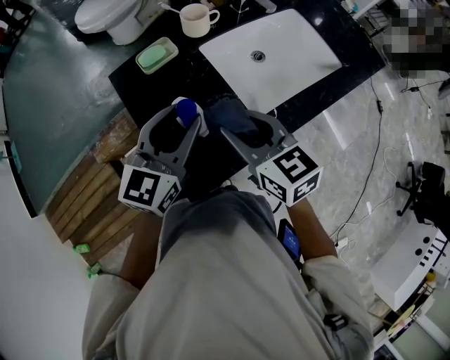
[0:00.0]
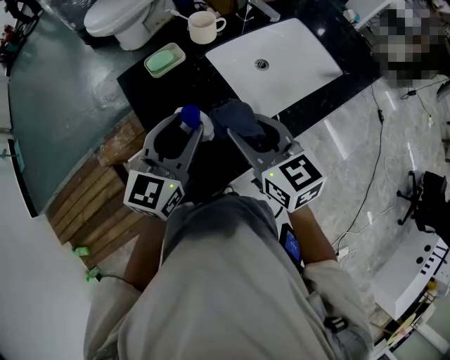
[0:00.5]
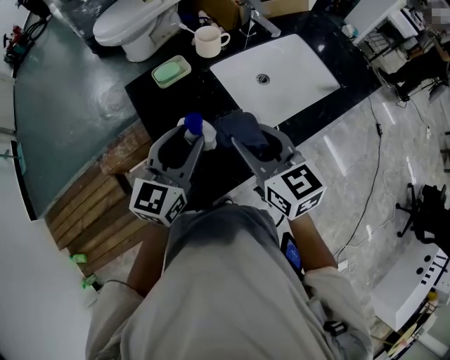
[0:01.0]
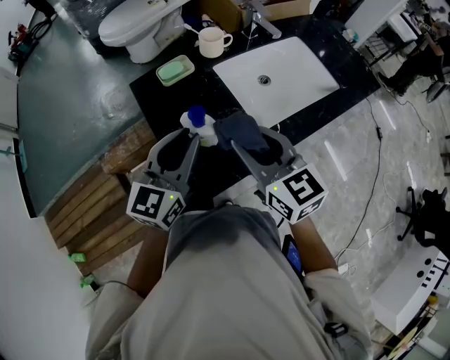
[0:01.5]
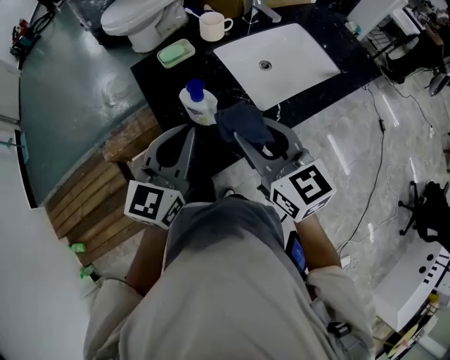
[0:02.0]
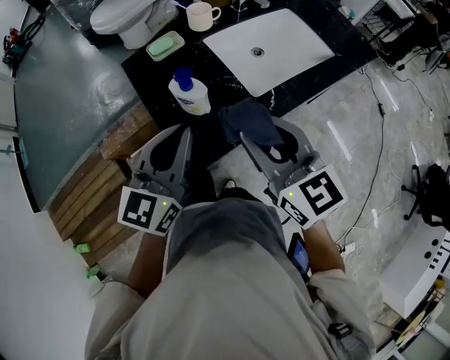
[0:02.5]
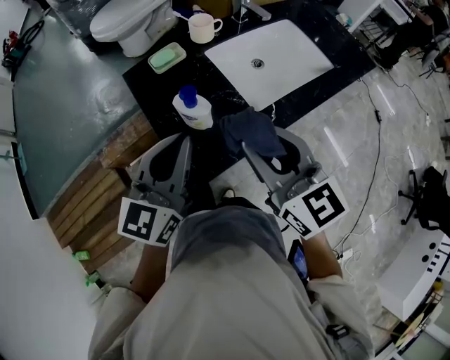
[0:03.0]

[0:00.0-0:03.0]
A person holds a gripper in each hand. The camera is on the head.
0:00.0 to 0:01.5: The right gripper ends up roughly 5 cm from where it was. Meanwhile the left gripper changes place by roughly 5 cm.
0:01.5 to 0:03.0: Both grippers move backward, roughly 5 cm.

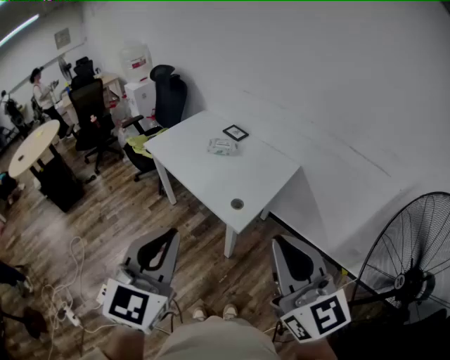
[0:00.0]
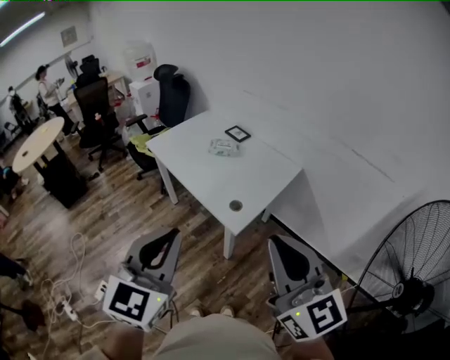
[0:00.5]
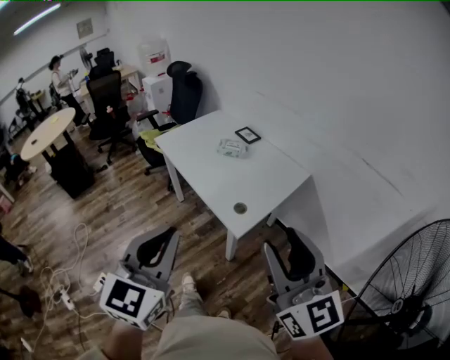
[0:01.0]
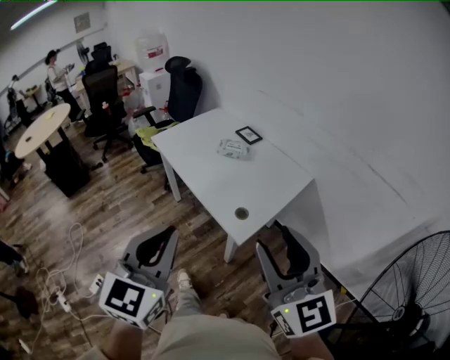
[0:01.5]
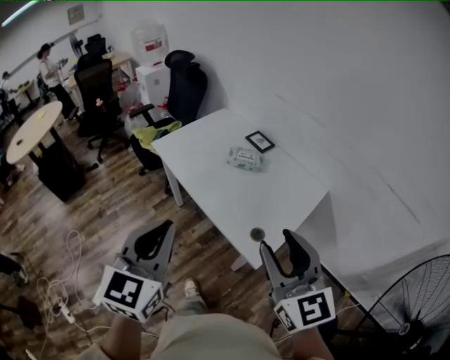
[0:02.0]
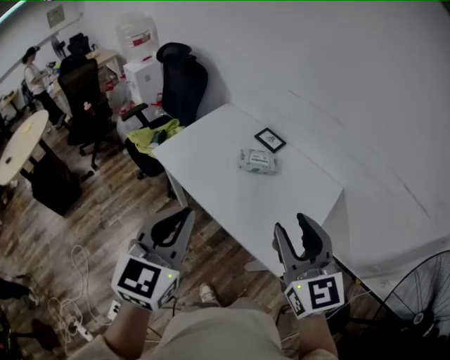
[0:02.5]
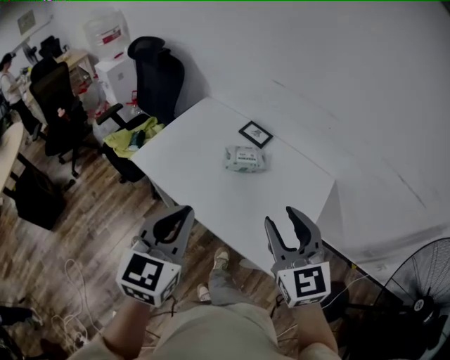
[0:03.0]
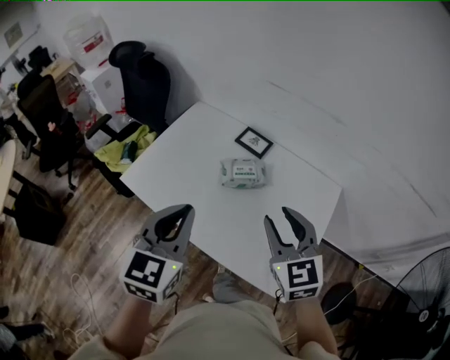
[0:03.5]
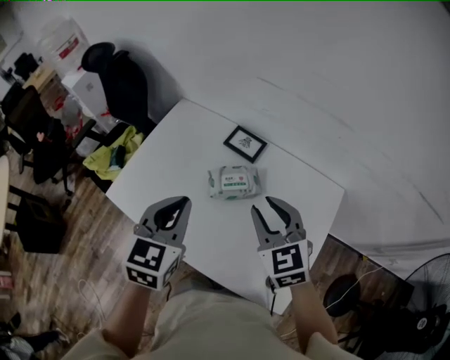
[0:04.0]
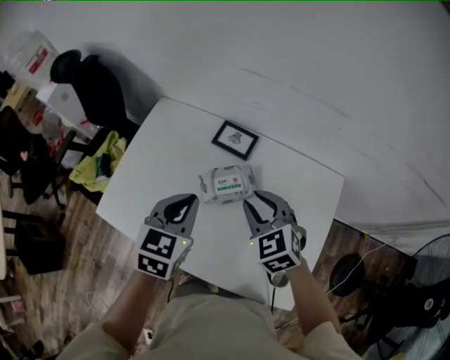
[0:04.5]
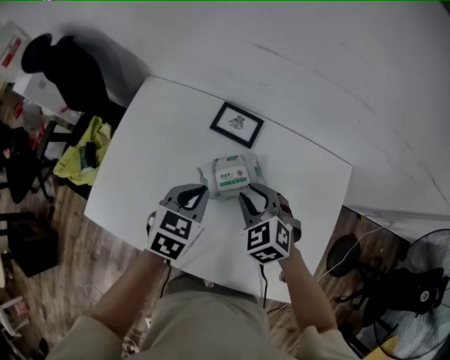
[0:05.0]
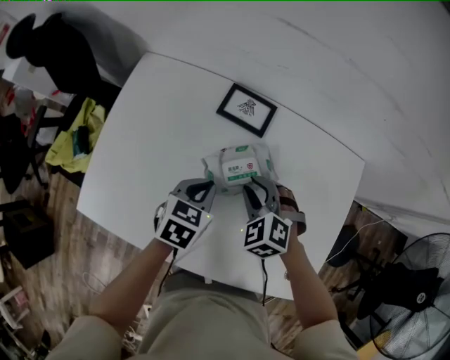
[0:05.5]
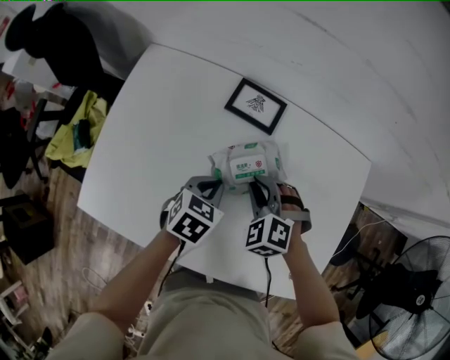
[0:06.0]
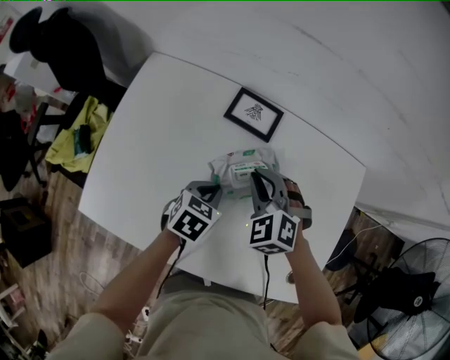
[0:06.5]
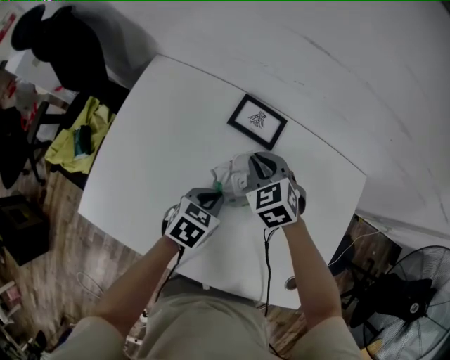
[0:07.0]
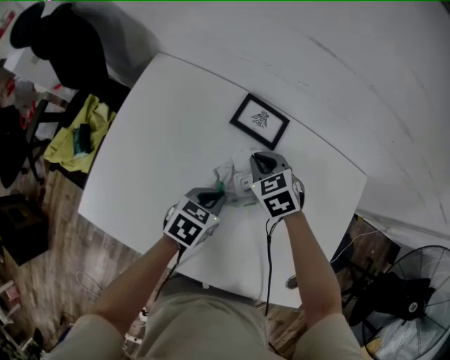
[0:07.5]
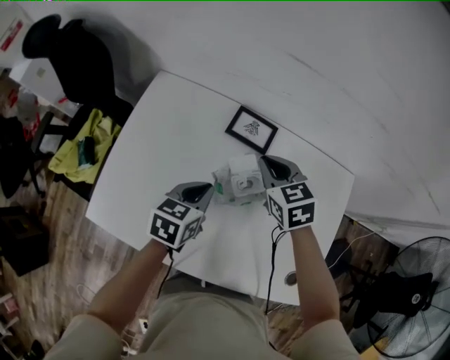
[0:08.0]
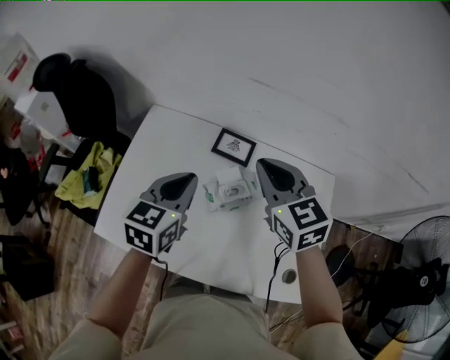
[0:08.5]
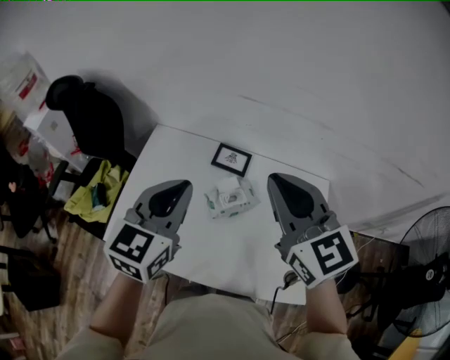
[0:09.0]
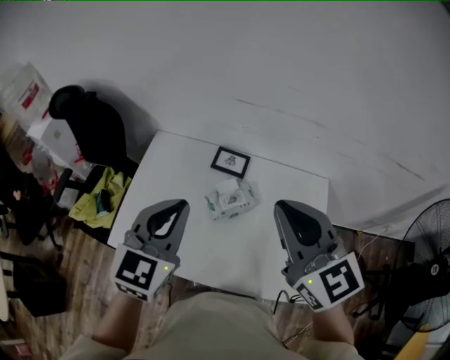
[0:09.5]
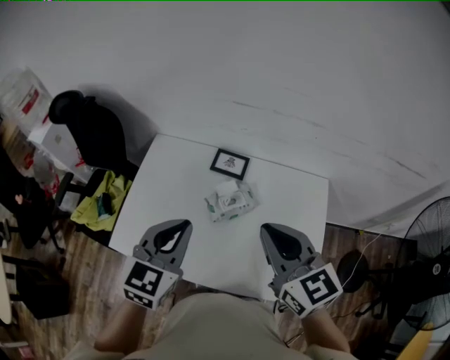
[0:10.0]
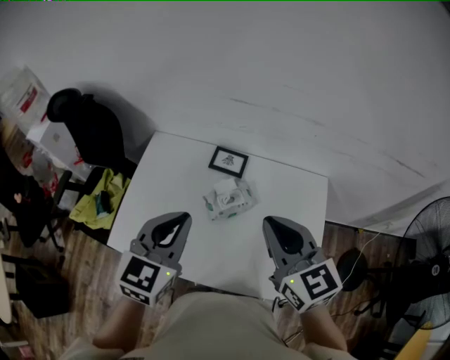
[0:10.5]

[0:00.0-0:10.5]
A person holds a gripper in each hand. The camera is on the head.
0:00.0 to 0:02.0: The right gripper heads forward, covering some 25 cm, and opens its fingers, while the left gripper travels forward and to the left by roughly 25 cm.
0:02.0 to 0:04.0: The pair of grippers is taken forward, about 50 cm. The left gripper swivels roughly 30 degrees; the right gripper rotates roughly 30 degrees.
0:04.0 to 0:06.5: The left gripper shifts roughly 30 cm downward, and swivels some 40 degrees; the right gripper travels downward by about 20 cm, changes its angle by approximately 30 degrees, and closes.
0:06.5 to 0:08.5: Both grippers move upward, roughly 25 cm. The left gripper changes its angle by some 30 degrees. Meanwhile the right gripper turns by approximately 40 degrees.
0:08.5 to 0:10.5: The two grippers go some 15 cm backward and upward.

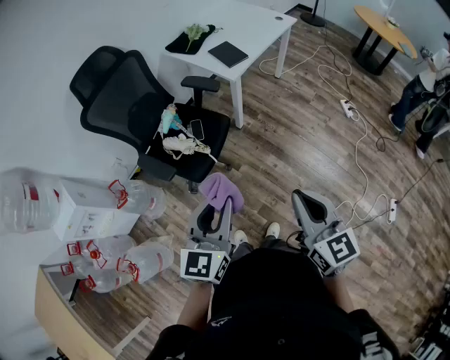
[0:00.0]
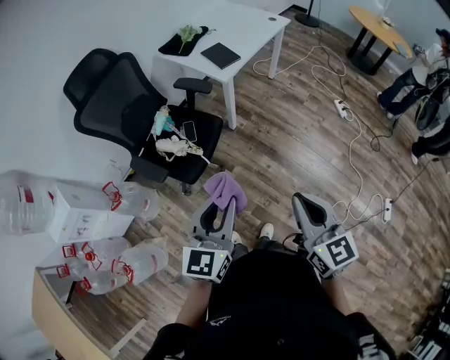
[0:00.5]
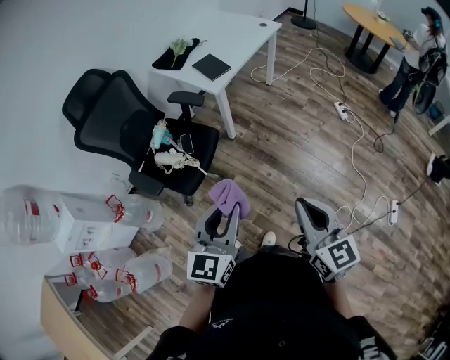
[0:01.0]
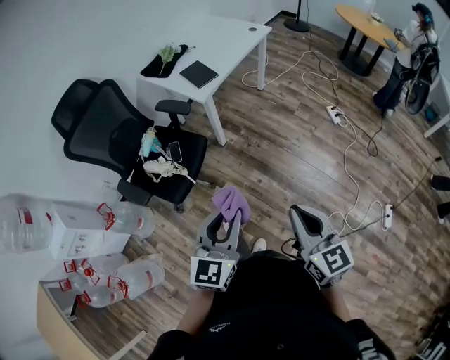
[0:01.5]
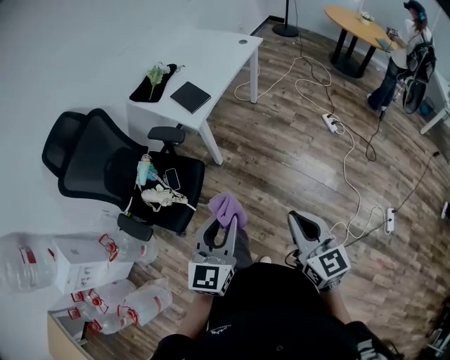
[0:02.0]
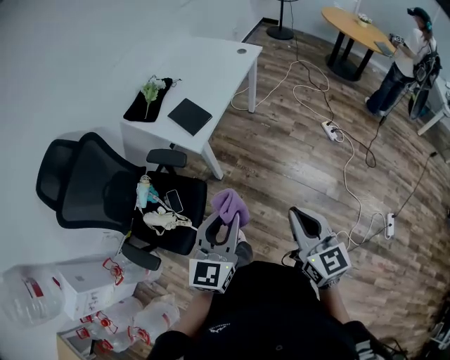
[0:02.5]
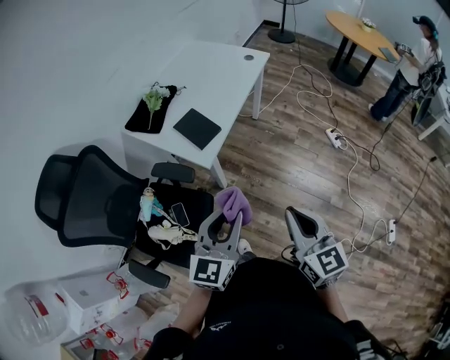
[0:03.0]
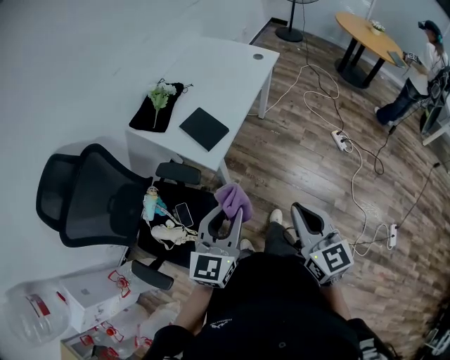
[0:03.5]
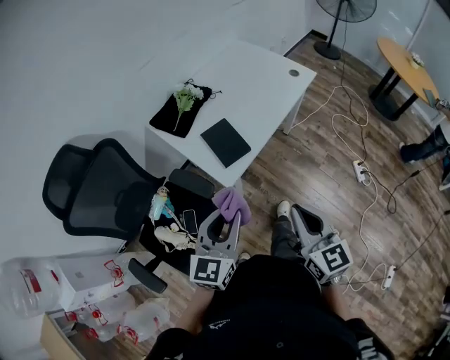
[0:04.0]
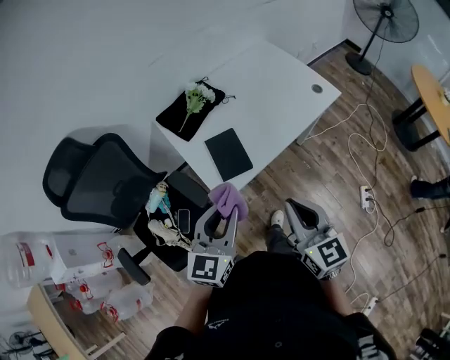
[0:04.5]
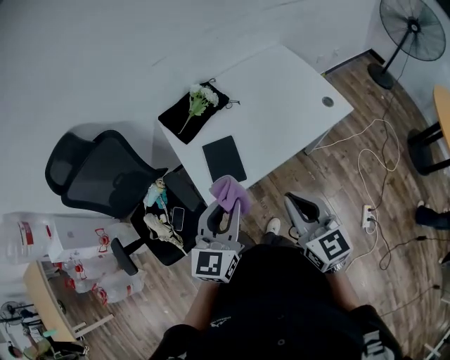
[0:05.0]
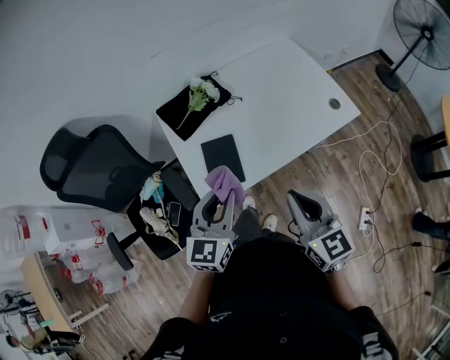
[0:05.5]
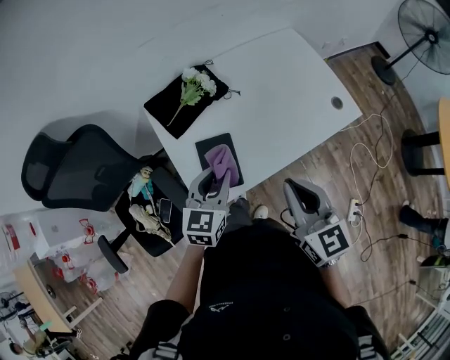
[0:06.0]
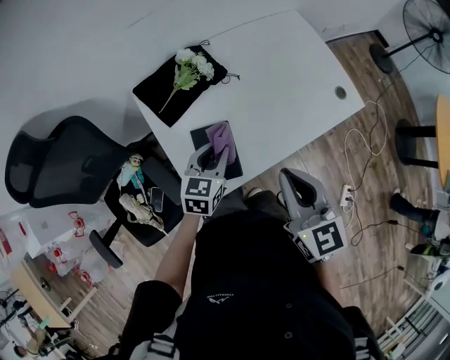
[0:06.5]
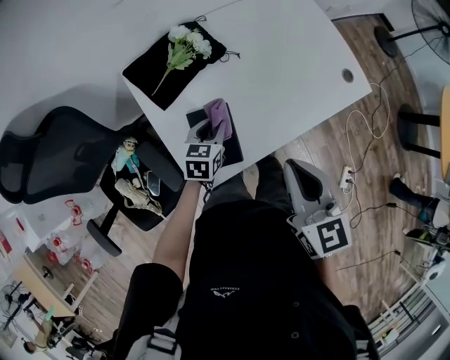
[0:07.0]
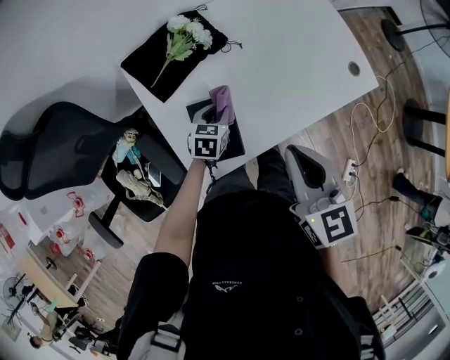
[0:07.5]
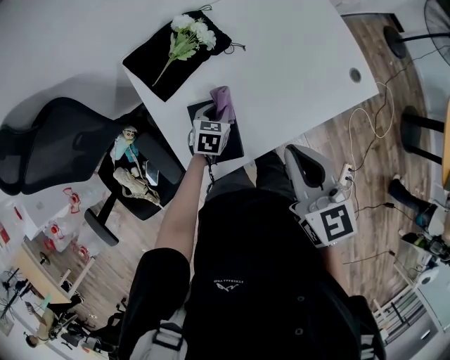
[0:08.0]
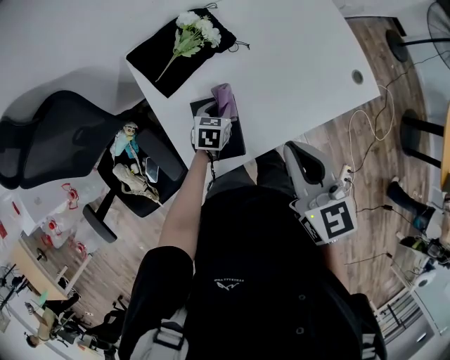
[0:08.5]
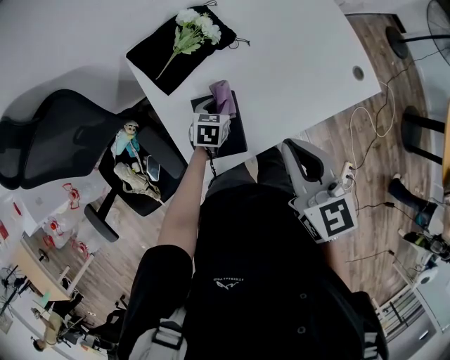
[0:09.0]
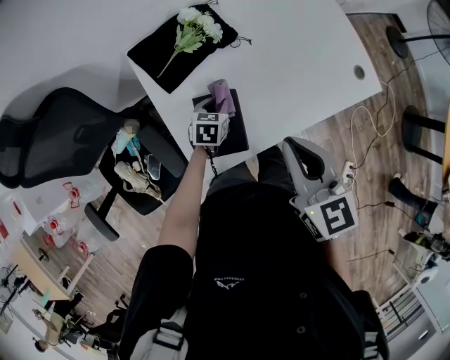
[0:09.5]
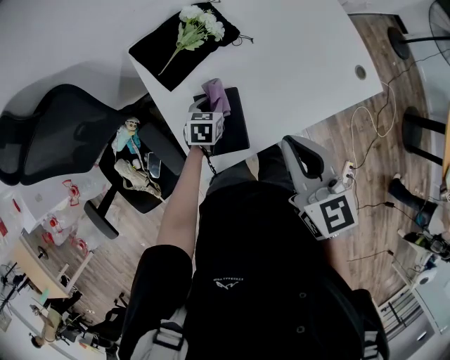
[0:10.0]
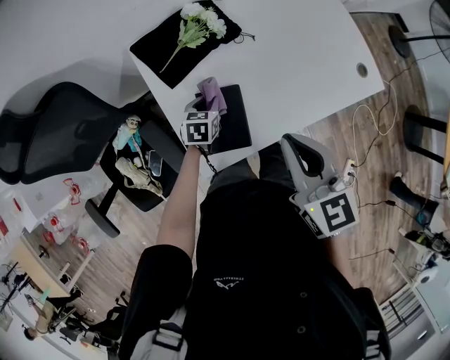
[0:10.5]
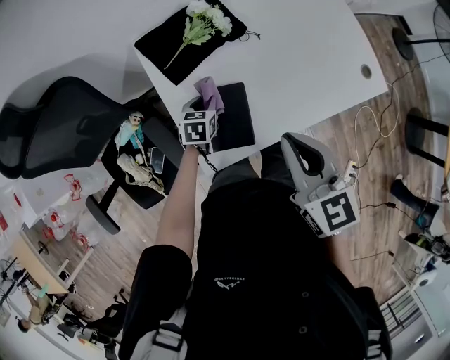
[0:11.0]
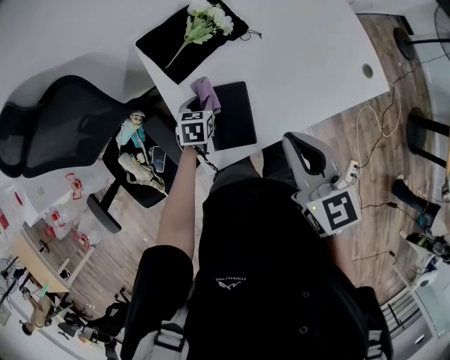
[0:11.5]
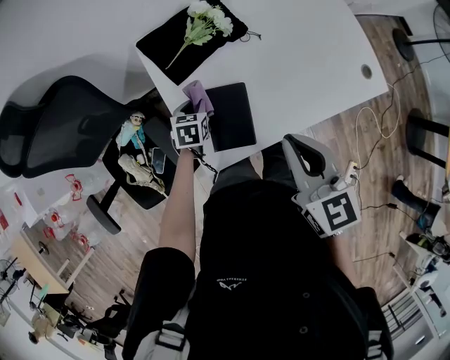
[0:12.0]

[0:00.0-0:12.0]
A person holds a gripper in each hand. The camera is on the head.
0:00.0 to 0:02.0: Both grippers travel together to the right and forward, about 20 cm.
0:02.0 to 0:04.0: The two grippers go some 40 cm forward.
0:04.0 to 0:06.0: The left gripper moves some 35 cm, and swivels about 20 degrees; the right gripper ends up some 35 cm from where it was, and swivels about 20 degrees.
0:06.0 to 0:08.0: The right gripper heads forward, covering roughly 5 cm. Meanwhile the left gripper heads downward and forward, covering about 25 cm, and rotates roughly 30 degrees.
0:08.0 to 0:10.0: The grippers stay close to where they were, moving slightly.
0:10.0 to 0:12.0: The left gripper shifts roughly 10 cm to the left.

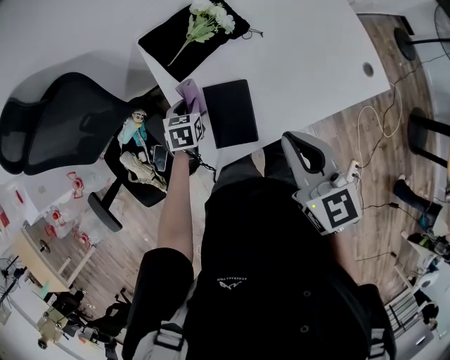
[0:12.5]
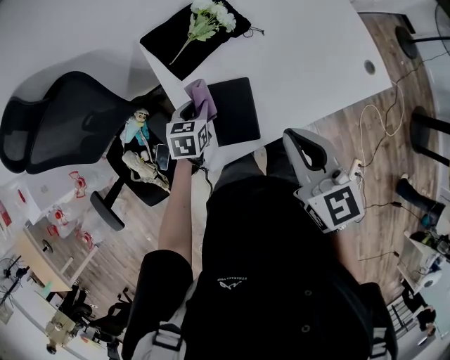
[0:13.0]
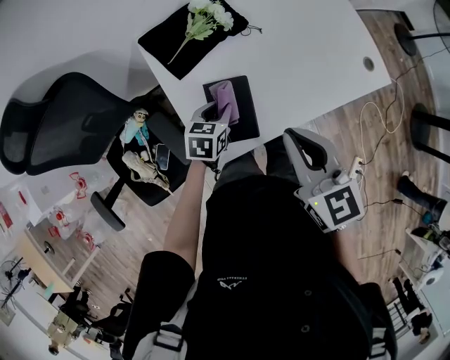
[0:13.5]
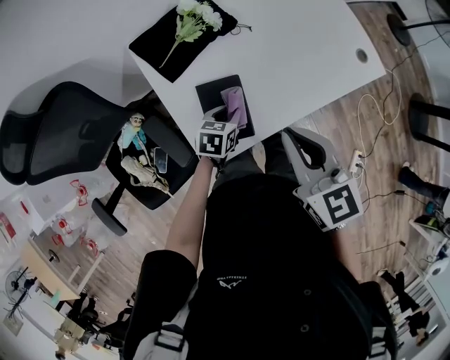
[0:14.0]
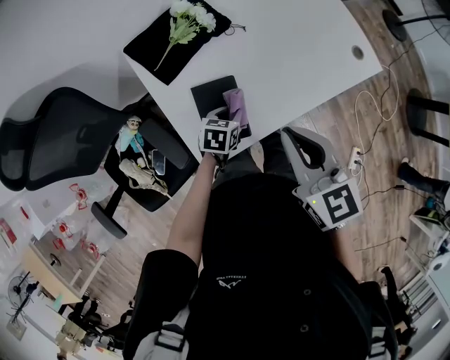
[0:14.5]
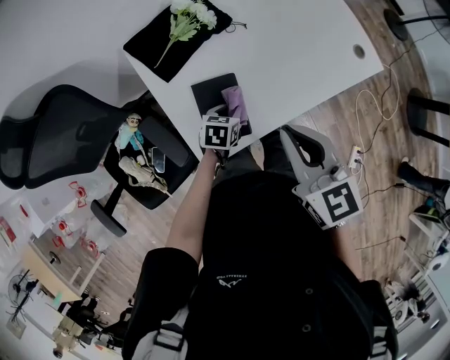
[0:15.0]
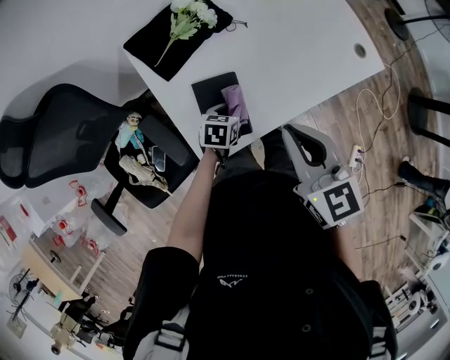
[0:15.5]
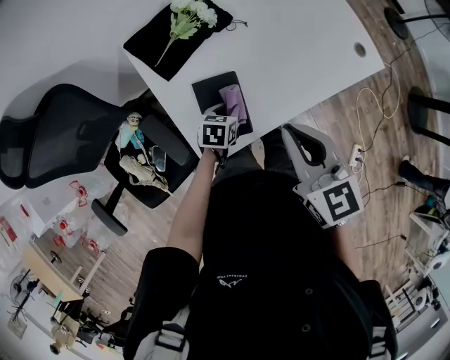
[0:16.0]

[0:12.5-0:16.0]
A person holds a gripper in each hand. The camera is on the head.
0:12.5 to 0:14.5: The left gripper goes about 15 cm to the right, and rotates approximately 20 degrees.
0:14.5 to 0:16.0: The grippers move only a little.
